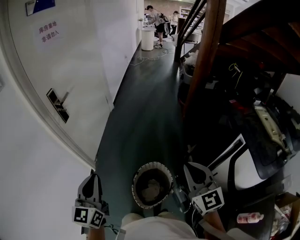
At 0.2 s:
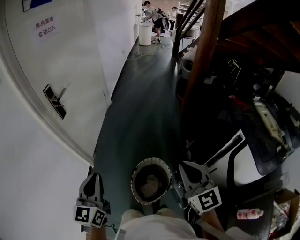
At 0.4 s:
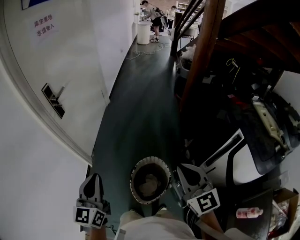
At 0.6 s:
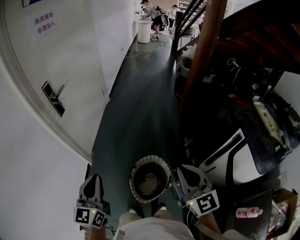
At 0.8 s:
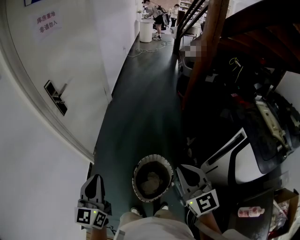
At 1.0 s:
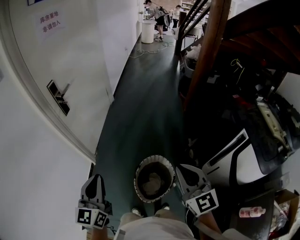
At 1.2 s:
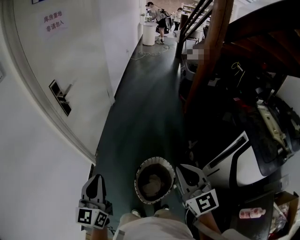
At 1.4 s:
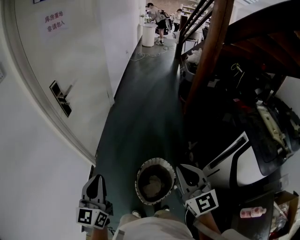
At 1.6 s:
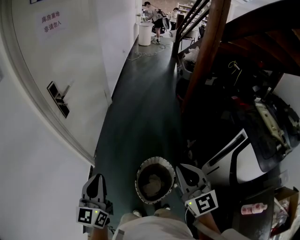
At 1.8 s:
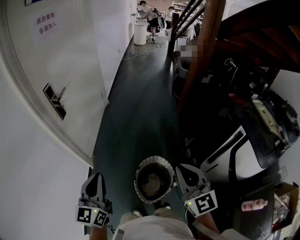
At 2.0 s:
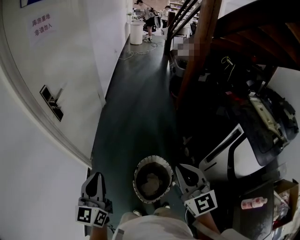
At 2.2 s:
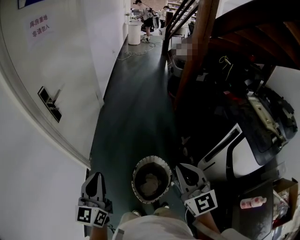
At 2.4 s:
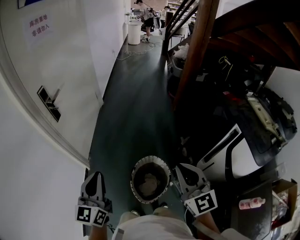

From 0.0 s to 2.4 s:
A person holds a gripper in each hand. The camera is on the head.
From 0.0 s to 1.2 s: The right gripper moves to the left, approximately 10 cm.
From 1.2 s to 2.4 s: There are only small adjustments of the grippers.

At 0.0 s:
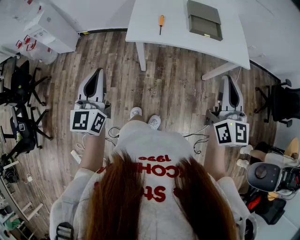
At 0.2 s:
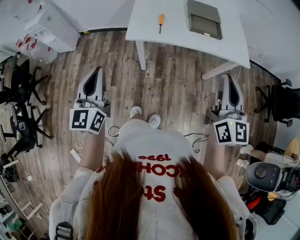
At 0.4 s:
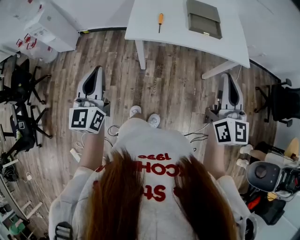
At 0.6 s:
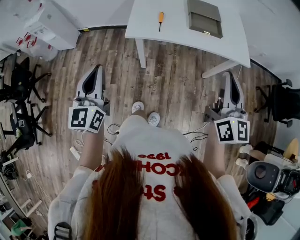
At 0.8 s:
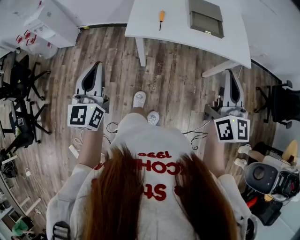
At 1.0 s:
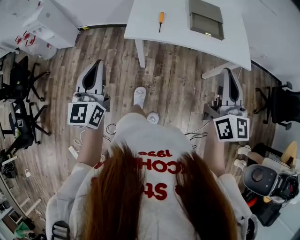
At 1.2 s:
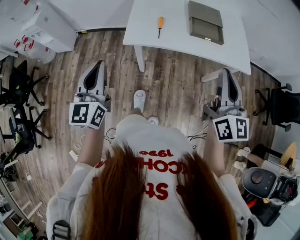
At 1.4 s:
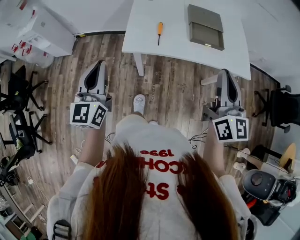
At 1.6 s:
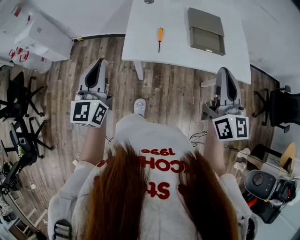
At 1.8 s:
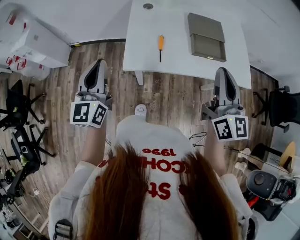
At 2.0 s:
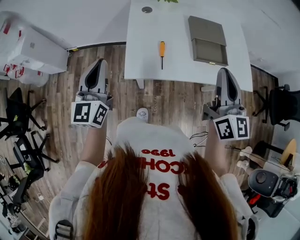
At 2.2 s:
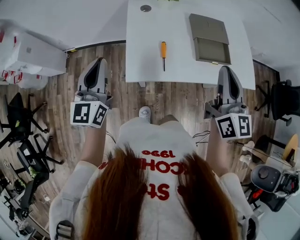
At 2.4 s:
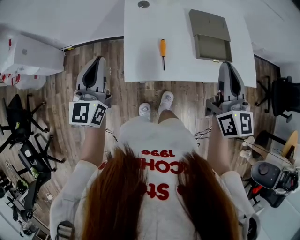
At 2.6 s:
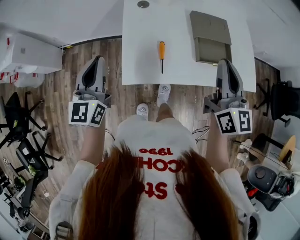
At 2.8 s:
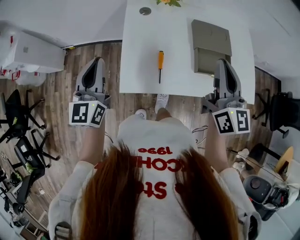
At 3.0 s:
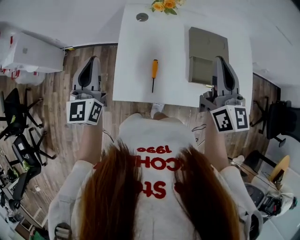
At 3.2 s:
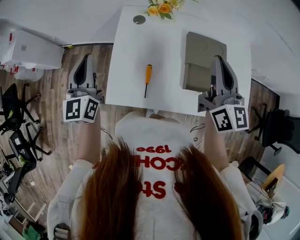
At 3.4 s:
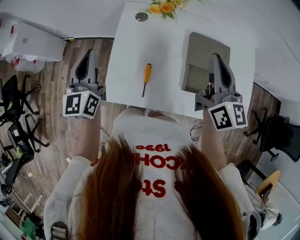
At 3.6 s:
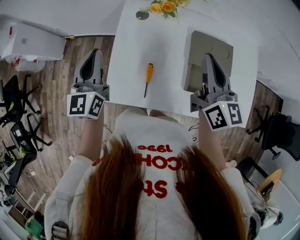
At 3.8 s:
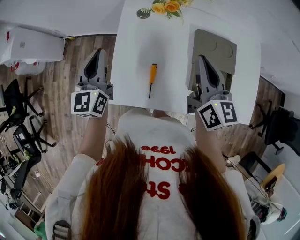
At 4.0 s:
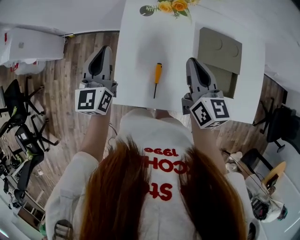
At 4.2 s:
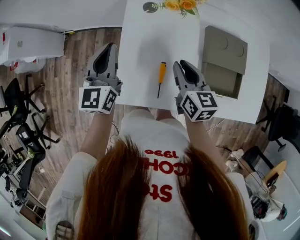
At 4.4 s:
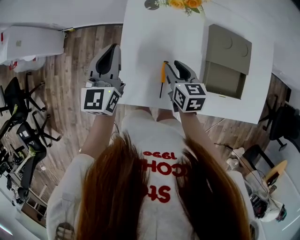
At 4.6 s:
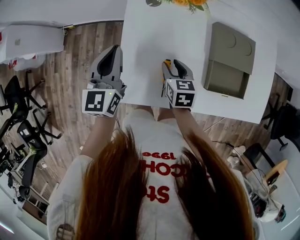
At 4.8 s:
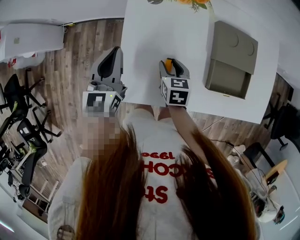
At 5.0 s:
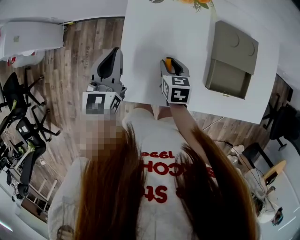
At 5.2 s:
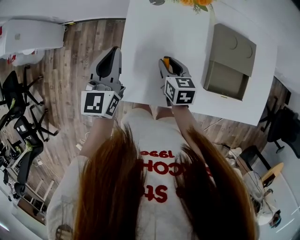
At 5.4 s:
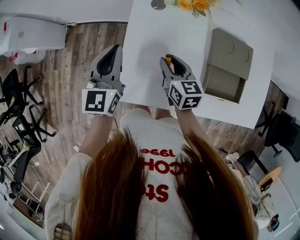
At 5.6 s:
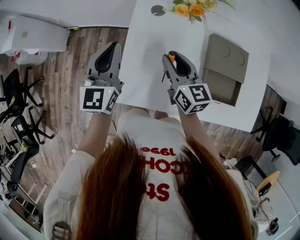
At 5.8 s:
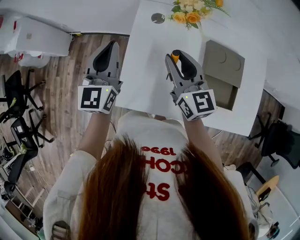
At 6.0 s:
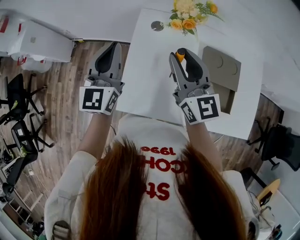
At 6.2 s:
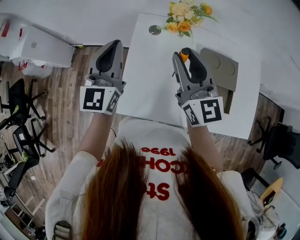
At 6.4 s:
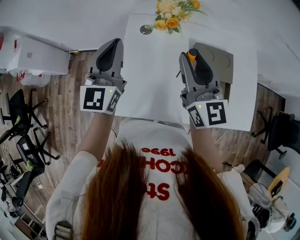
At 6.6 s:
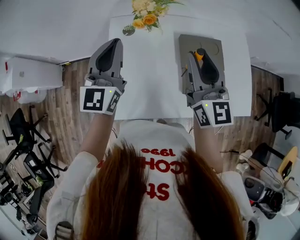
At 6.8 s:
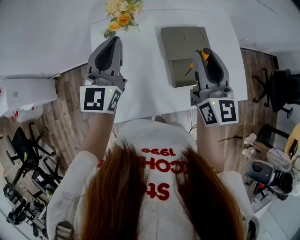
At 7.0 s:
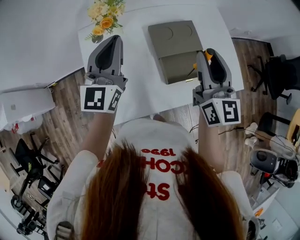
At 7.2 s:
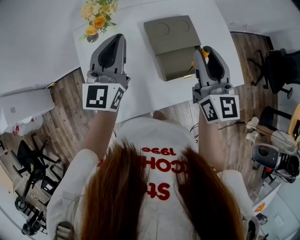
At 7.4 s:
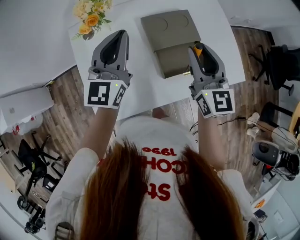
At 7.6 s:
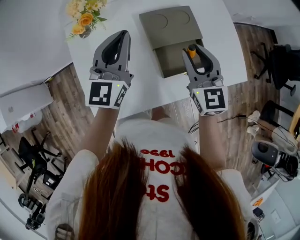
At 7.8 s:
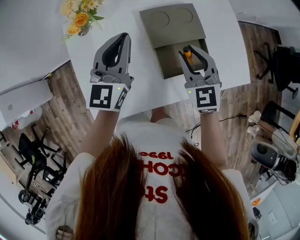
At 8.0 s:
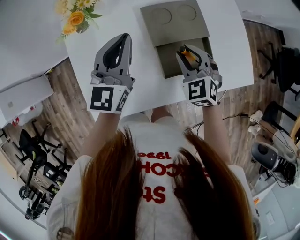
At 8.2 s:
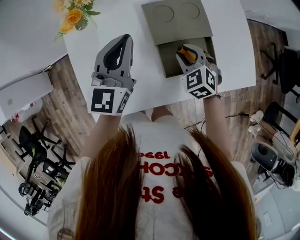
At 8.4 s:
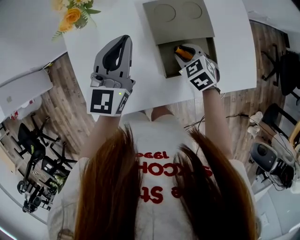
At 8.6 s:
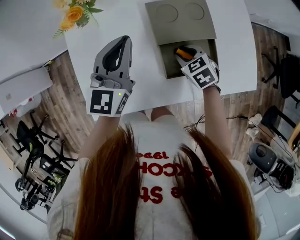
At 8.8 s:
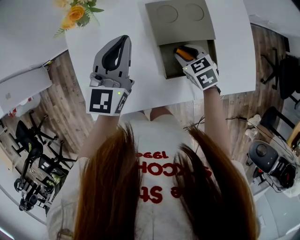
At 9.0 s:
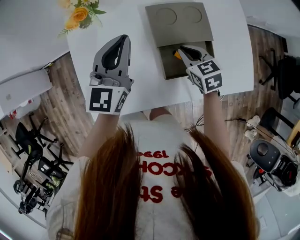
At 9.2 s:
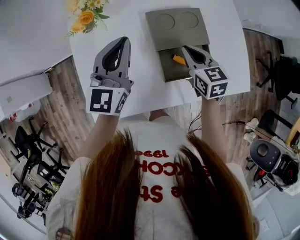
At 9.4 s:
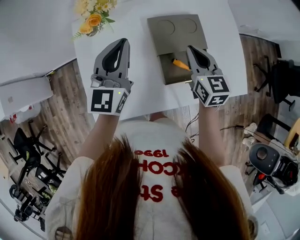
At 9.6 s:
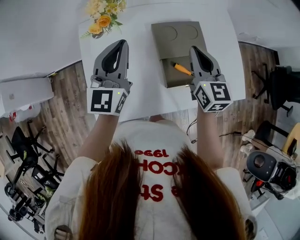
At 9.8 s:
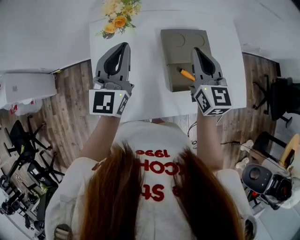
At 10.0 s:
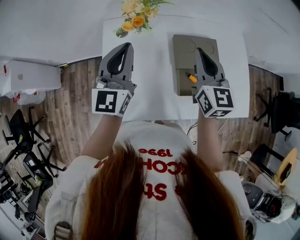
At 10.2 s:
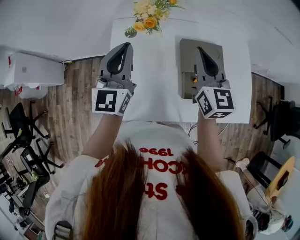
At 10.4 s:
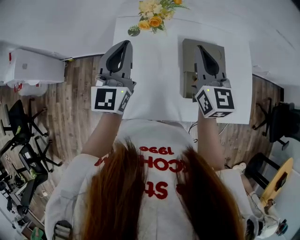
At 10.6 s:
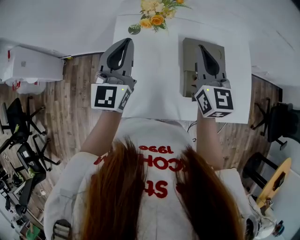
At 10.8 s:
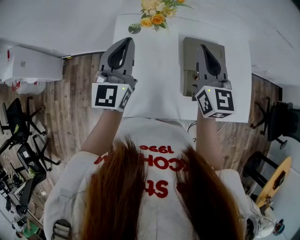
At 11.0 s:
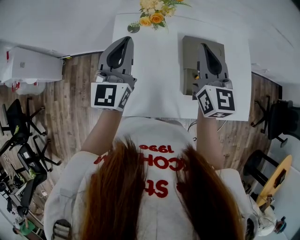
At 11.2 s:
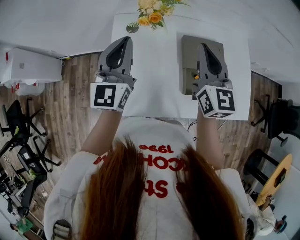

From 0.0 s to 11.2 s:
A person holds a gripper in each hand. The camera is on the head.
From 0.0 s to 1.6 s: The grippers both shift forward by about 15 cm.
From 1.6 s to 3.2 s: Both grippers travel together forward, approximately 25 cm.
From 3.2 s to 4.8 s: The right gripper shifts about 35 cm downward and to the left, points its fingers roughly 50 degrees further downward, and opens up; the left gripper moves downward, approximately 10 cm.
From 4.8 s to 6.4 s: The right gripper heads upward, covering about 30 cm, and tips its fingers upward by approximately 50 degrees, while the left gripper heads upward, covering some 15 cm, and turns by approximately 20 degrees.
From 6.4 s to 8.0 s: The left gripper goes roughly 25 cm to the right and downward, and changes its angle by some 30 degrees. The right gripper is displaced downward and to the right by roughly 30 cm, and tilts its fingers roughly 40 degrees downward.
From 8.0 s to 9.6 s: The left gripper shifts by some 5 cm, while the right gripper moves upward, some 10 cm, turns by approximately 40 degrees, and closes.
From 9.6 s to 11.2 s: The left gripper is displaced to the left by some 10 cm. The right gripper shifts about 15 cm to the left and upward.

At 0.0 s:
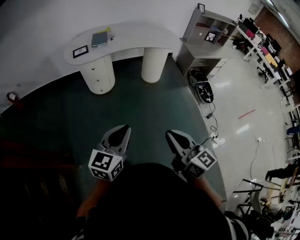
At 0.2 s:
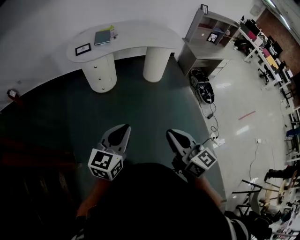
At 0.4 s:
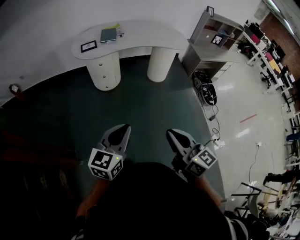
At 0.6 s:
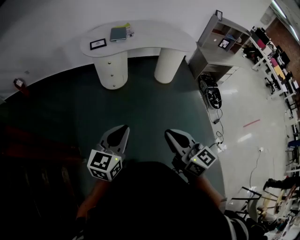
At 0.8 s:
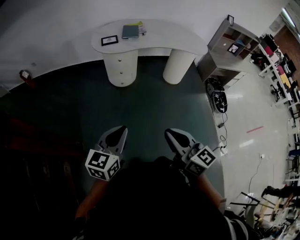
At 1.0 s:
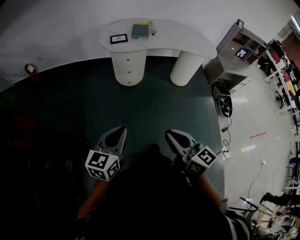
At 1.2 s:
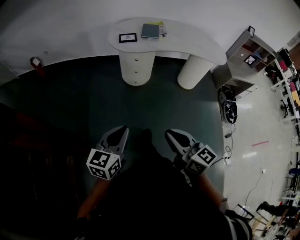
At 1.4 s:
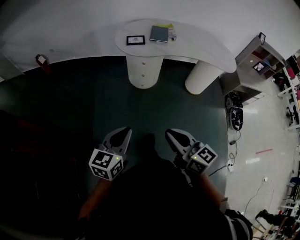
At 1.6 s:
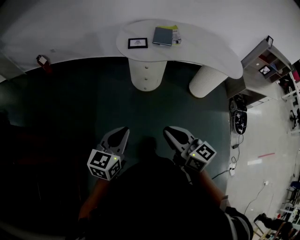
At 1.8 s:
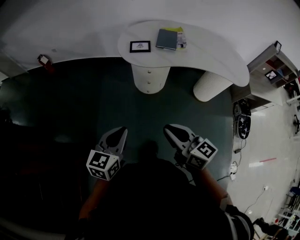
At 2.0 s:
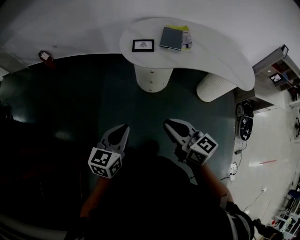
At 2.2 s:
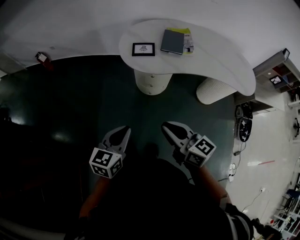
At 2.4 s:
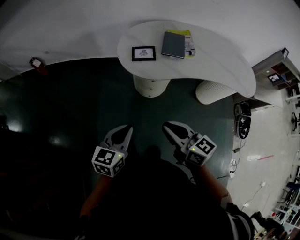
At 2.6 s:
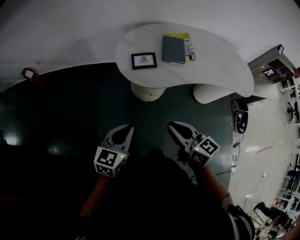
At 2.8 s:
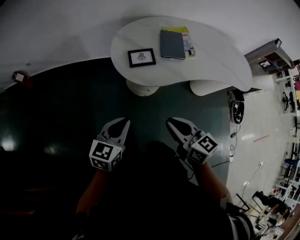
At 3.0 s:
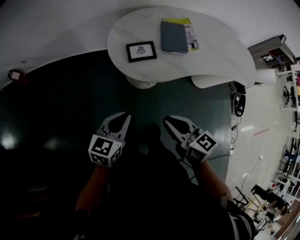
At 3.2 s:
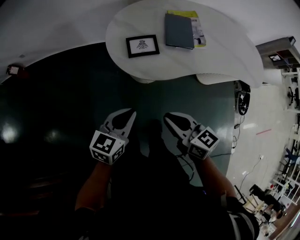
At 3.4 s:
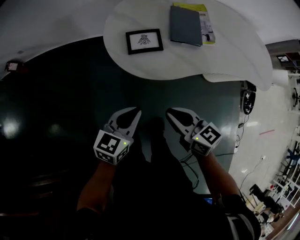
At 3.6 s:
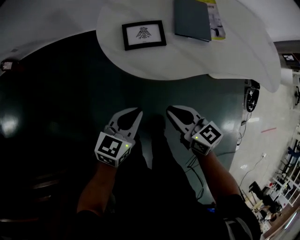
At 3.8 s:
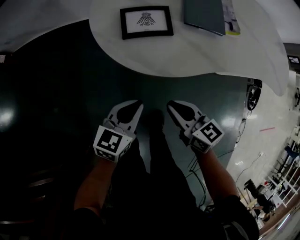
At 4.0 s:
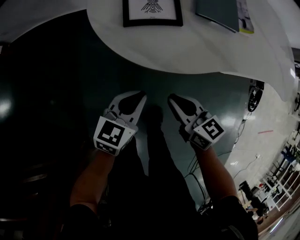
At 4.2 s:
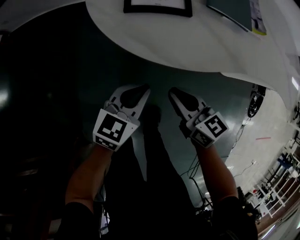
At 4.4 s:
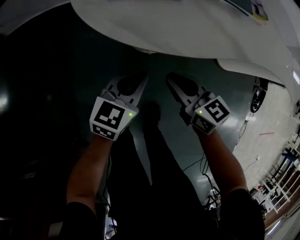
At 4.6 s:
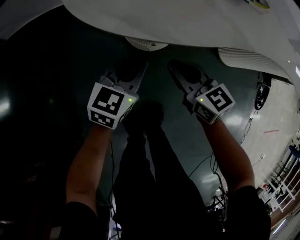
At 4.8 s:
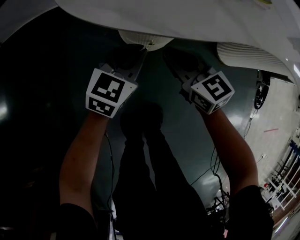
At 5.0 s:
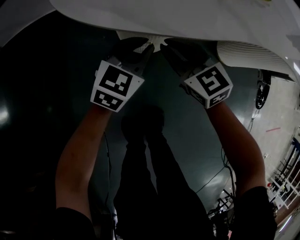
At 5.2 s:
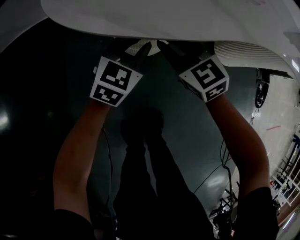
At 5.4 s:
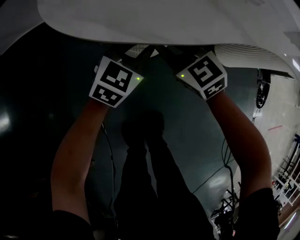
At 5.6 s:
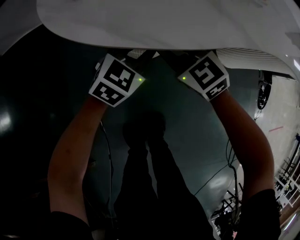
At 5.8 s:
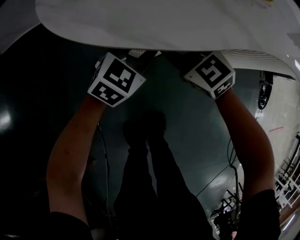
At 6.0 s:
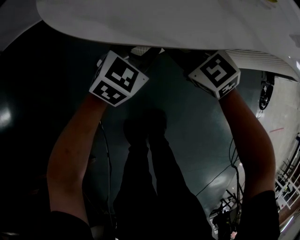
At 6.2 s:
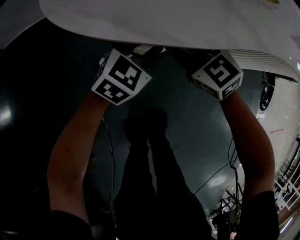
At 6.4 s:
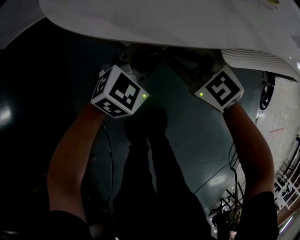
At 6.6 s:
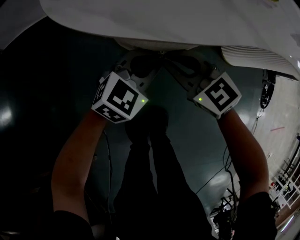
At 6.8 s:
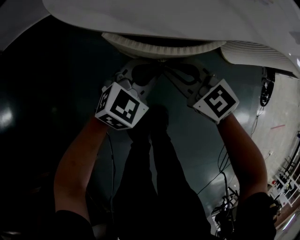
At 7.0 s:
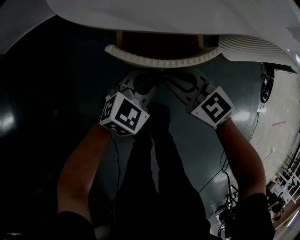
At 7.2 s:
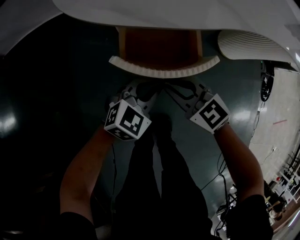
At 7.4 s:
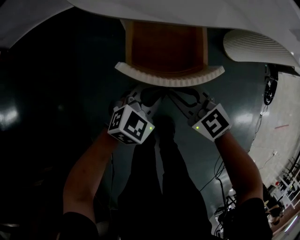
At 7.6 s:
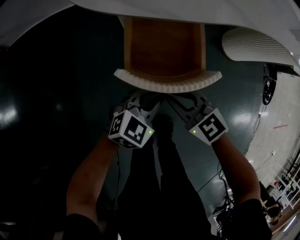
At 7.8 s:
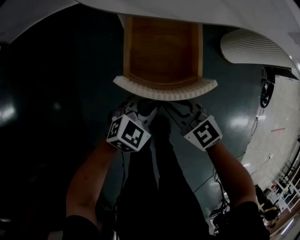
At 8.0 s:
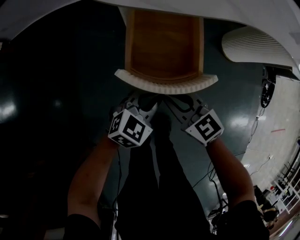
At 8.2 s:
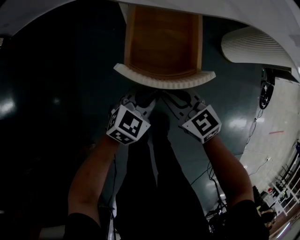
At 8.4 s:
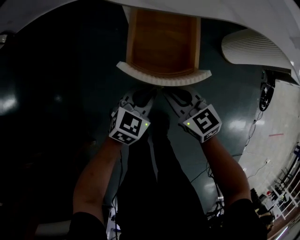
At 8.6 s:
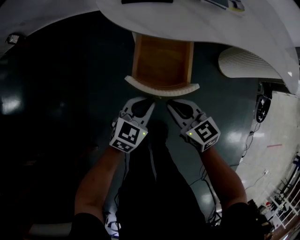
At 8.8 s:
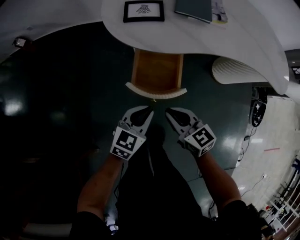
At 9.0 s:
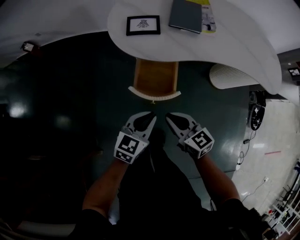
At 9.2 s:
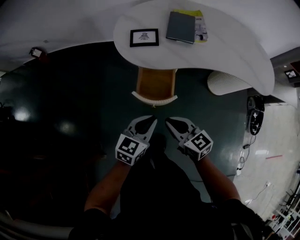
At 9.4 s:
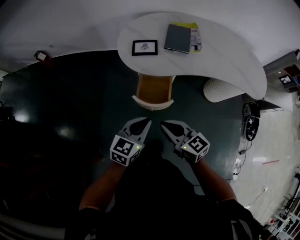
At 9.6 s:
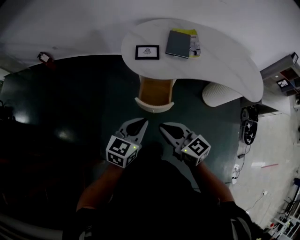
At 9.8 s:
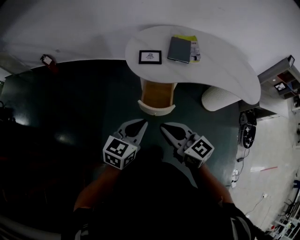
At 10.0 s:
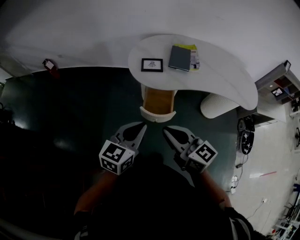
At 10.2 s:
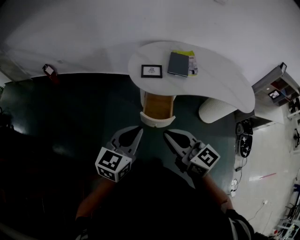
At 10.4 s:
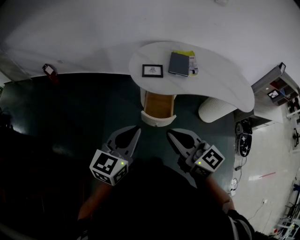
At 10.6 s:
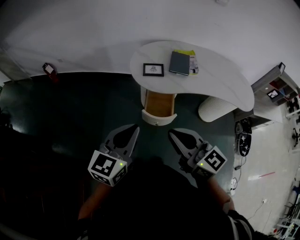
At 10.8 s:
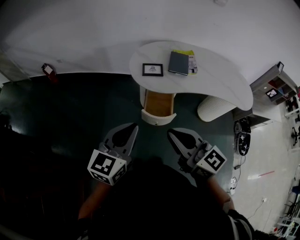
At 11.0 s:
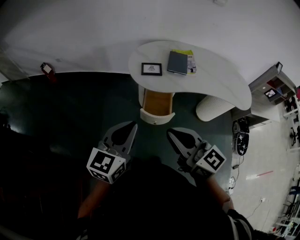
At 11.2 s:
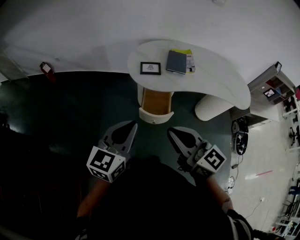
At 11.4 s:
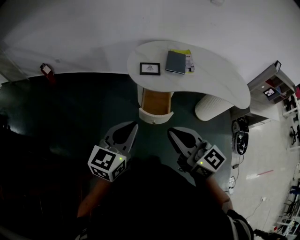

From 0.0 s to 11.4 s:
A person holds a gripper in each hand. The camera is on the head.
From 0.0 s to 1.4 s: The grippers both shift to the left and forward by some 25 cm. The right gripper changes its angle by approximately 20 degrees.
From 1.4 s to 2.8 s: The pair of grippers is taken forward, approximately 50 cm.
From 2.8 s to 4.2 s: The left gripper moves downward and to the right, some 35 cm, while the right gripper goes approximately 35 cm downward.
From 4.2 s to 5.6 s: The left gripper travels forward, downward and to the right by roughly 15 cm, and swivels roughly 30 degrees. Meanwhile the right gripper goes some 15 cm forward and downward, and rolls counterclockwise, seen from behind, by roughly 40 degrees.
From 5.6 s to 7.2 s: Both grippers travel together backward, about 15 cm.
From 7.2 s to 8.6 s: The two grippers go about 10 cm backward and upward. The right gripper rotates about 20 degrees. Meanwhile the left gripper turns by some 20 degrees.
From 8.6 s to 10.0 s: Both grippers move upward, some 40 cm. The left gripper changes its angle by approximately 20 degrees. Meanwhile the right gripper turns by roughly 20 degrees.
From 10.0 s to 11.4 s: The left gripper is displaced upward and to the left by roughly 10 cm; the right gripper travels upward by roughly 10 cm.
